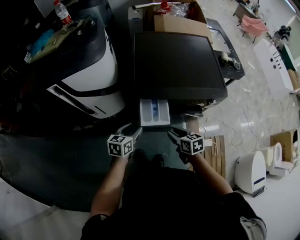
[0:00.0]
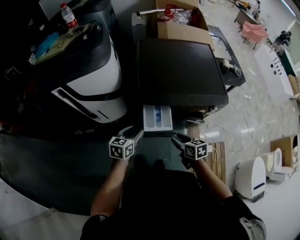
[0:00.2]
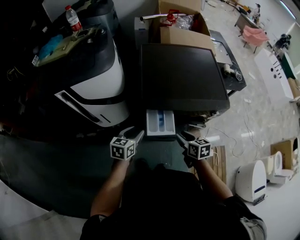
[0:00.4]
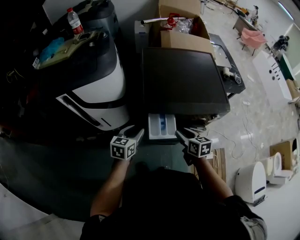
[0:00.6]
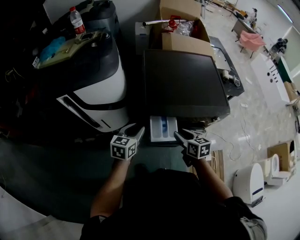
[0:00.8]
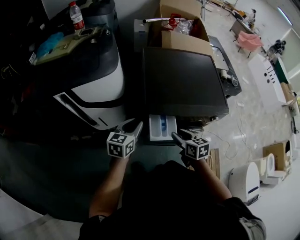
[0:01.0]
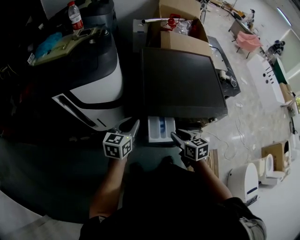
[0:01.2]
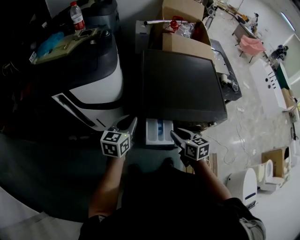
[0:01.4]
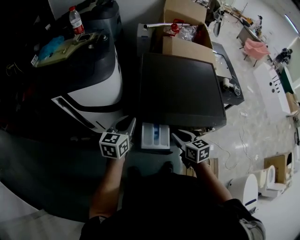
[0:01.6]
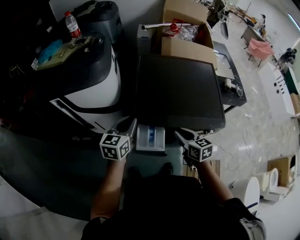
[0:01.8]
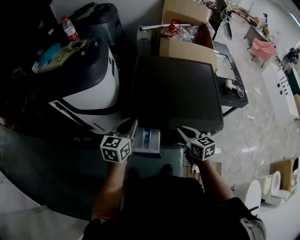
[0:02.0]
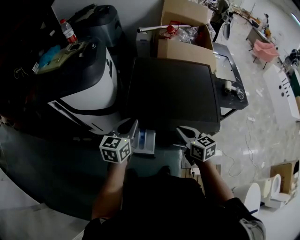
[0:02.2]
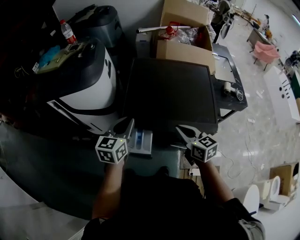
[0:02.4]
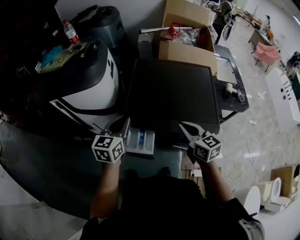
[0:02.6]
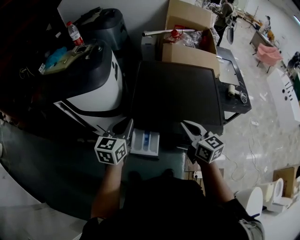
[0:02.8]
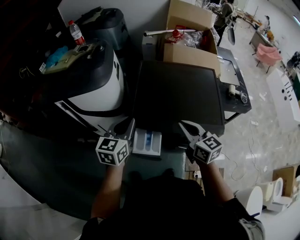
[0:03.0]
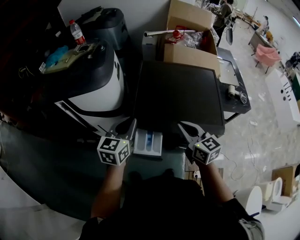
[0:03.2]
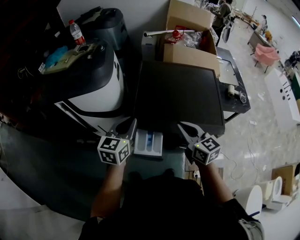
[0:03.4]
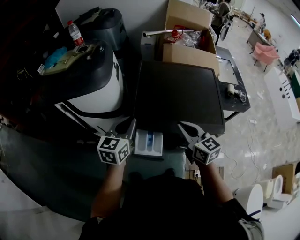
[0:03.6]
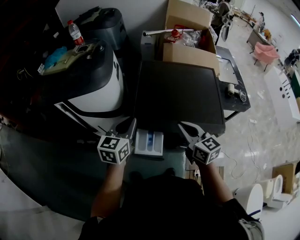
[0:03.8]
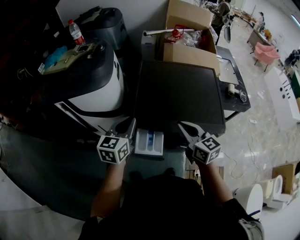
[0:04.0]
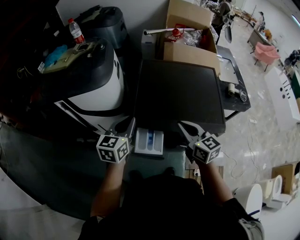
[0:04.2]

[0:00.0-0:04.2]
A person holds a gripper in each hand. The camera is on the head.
0:00.0 to 0:01.4: The left gripper shifts about 20 cm upward, forward and to the left, and closes; the right gripper travels forward and upward by some 15 cm.
0:01.4 to 0:02.8: The two grippers go roughly 15 cm to the right and upward. The right gripper swivels roughly 20 degrees, and closes.
0:02.8 to 0:04.2: The grippers move only a little.

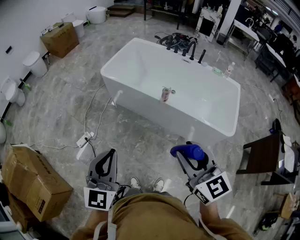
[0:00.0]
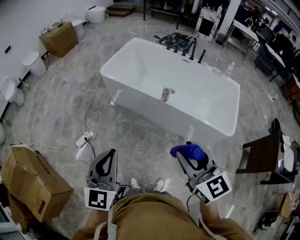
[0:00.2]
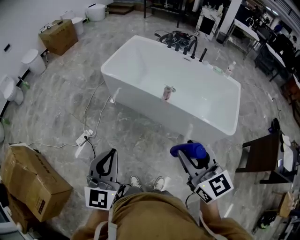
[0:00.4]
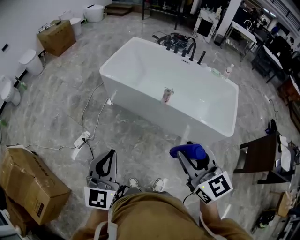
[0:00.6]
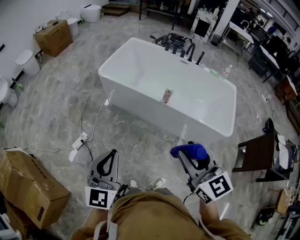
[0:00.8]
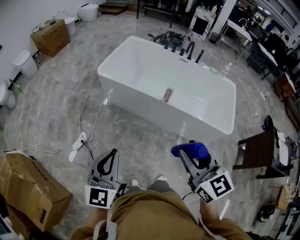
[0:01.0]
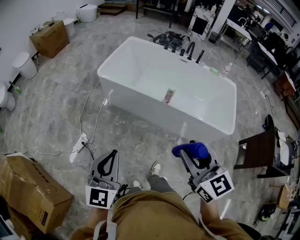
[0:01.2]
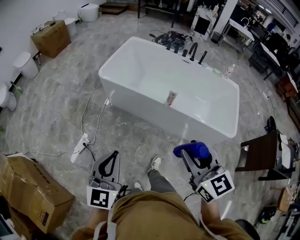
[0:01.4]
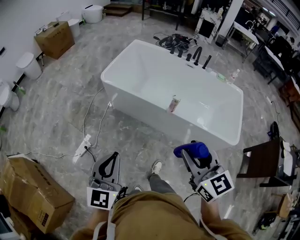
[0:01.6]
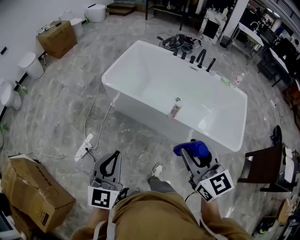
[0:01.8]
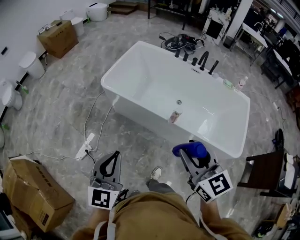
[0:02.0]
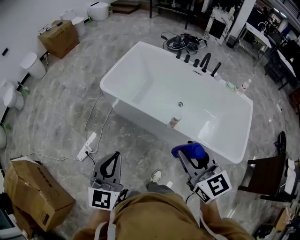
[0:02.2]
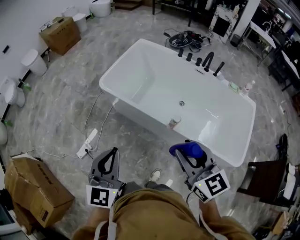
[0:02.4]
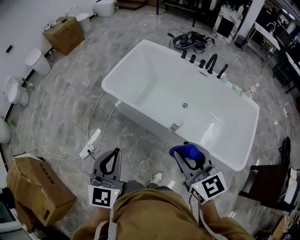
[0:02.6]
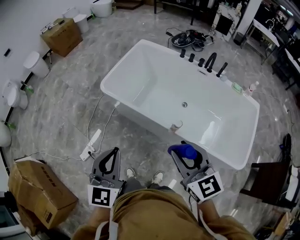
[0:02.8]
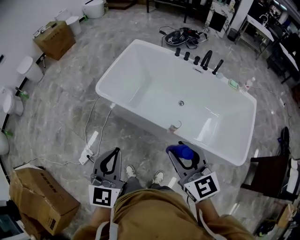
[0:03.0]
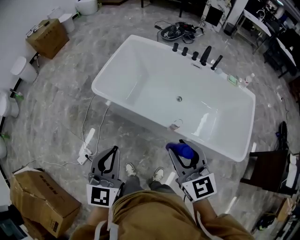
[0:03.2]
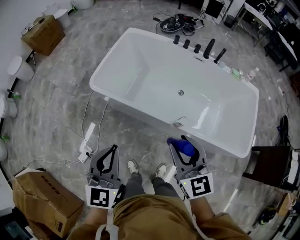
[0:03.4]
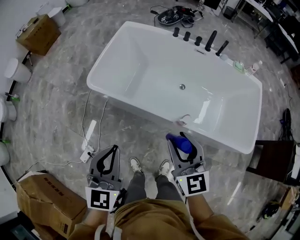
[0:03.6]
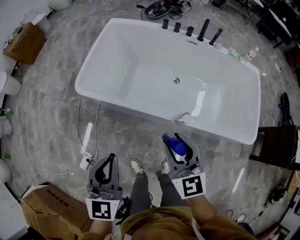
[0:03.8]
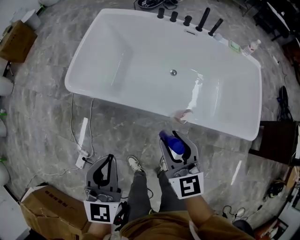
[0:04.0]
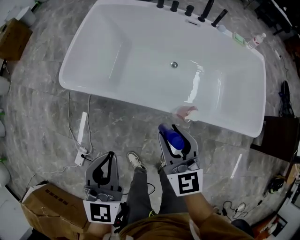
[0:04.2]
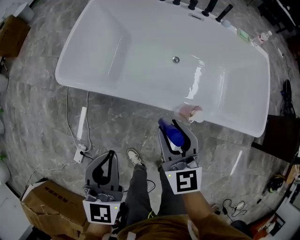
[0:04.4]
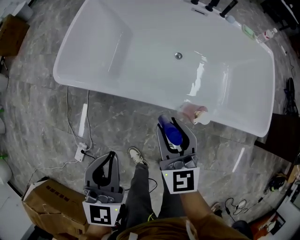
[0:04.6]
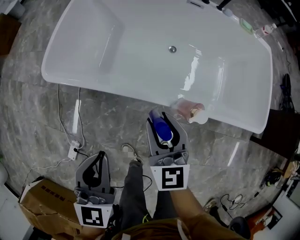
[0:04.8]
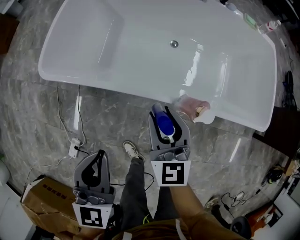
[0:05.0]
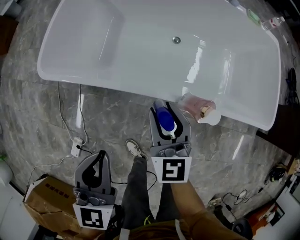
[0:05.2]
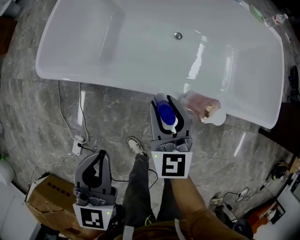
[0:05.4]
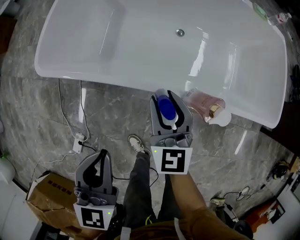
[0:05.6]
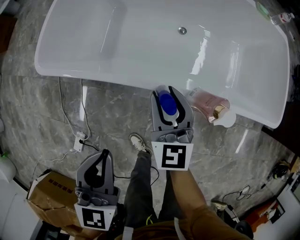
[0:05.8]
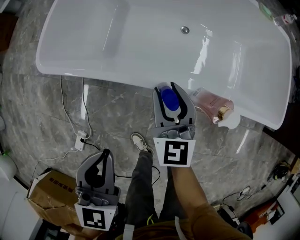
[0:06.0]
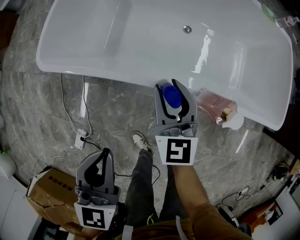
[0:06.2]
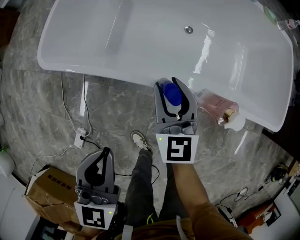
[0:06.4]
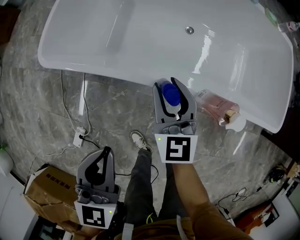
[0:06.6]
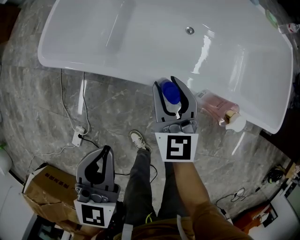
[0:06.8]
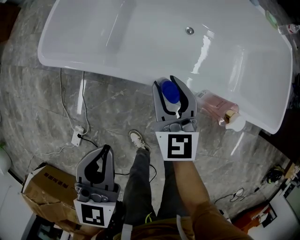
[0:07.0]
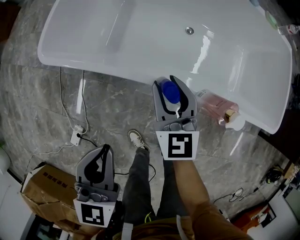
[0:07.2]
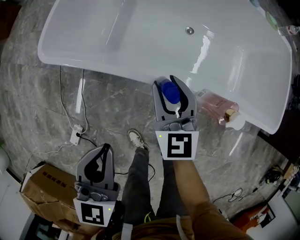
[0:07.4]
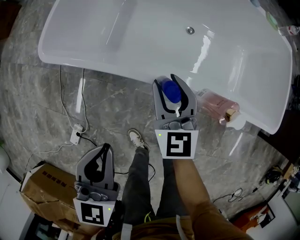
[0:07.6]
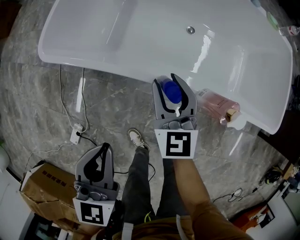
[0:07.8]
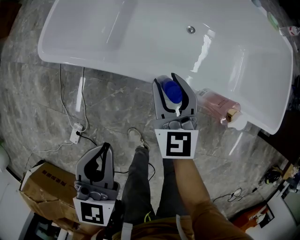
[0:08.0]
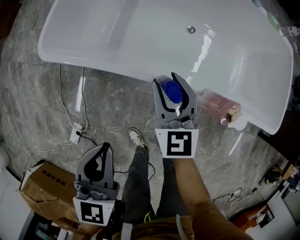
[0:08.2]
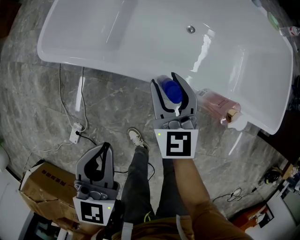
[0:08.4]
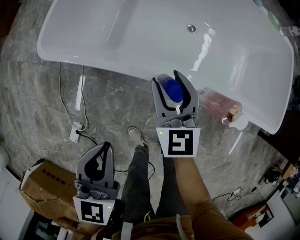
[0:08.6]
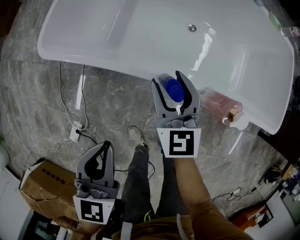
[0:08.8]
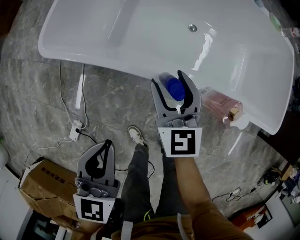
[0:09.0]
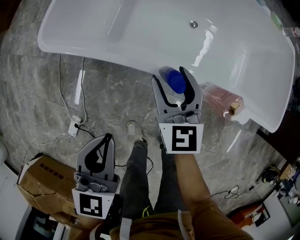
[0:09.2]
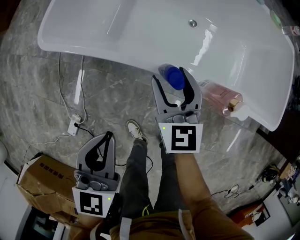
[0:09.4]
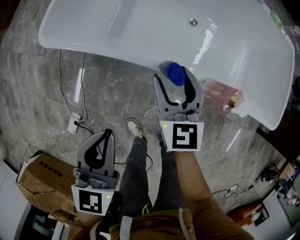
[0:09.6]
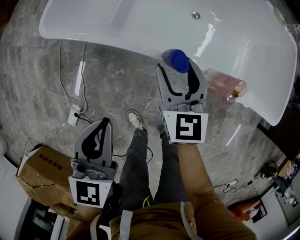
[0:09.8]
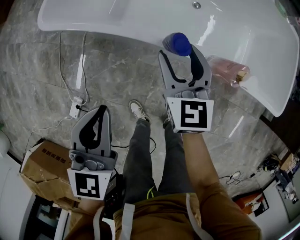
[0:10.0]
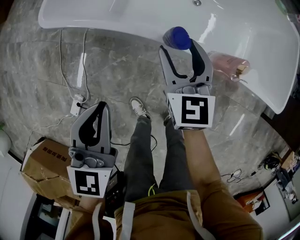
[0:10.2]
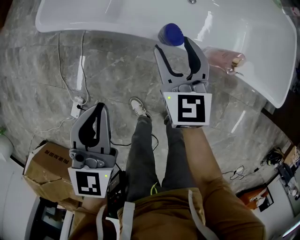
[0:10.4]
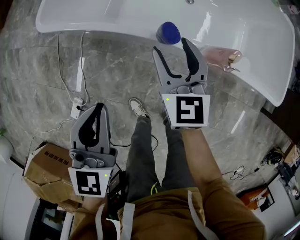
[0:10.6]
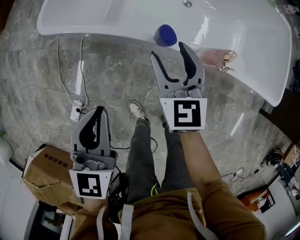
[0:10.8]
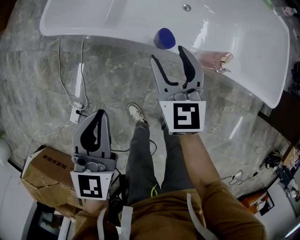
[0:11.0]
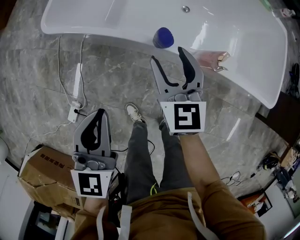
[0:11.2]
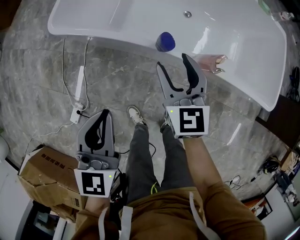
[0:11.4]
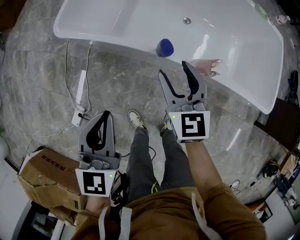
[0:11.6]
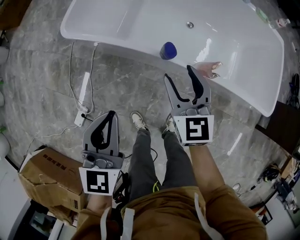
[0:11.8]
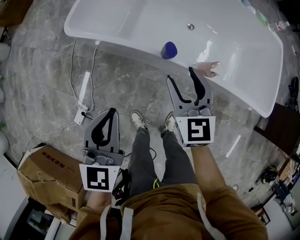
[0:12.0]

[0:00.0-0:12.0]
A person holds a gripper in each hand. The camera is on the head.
0:00.0 to 0:01.6: Both grippers move forward and to the left, about 15 cm.
0:01.6 to 0:03.0: The right gripper heads forward, covering approximately 25 cm. The left gripper goes about 25 cm forward and to the right.
0:03.0 to 0:04.4: Both grippers travel together downward and forward, about 25 cm. The right gripper swivels some 30 degrees.
0:04.4 to 0:06.0: The left gripper moves downward, some 10 cm. Meanwhile the right gripper heads downward and forward, covering some 15 cm.
0:06.0 to 0:07.6: The grippers move only a little.
0:07.6 to 0:09.0: The right gripper opens its fingers.
0:09.0 to 0:10.4: The grippers move only a little.
0:10.4 to 0:12.0: The left gripper travels upward by approximately 10 cm, while the right gripper moves upward and backward, some 10 cm.

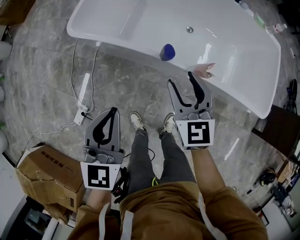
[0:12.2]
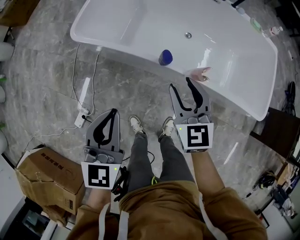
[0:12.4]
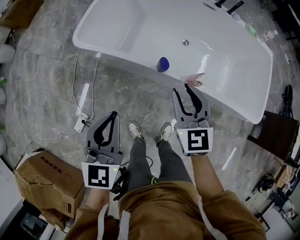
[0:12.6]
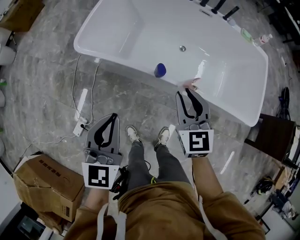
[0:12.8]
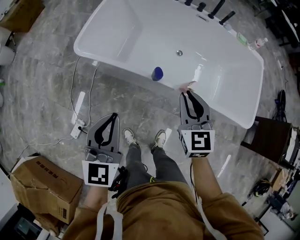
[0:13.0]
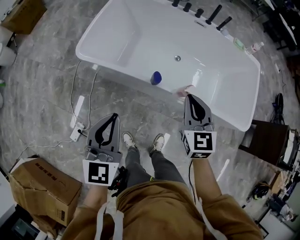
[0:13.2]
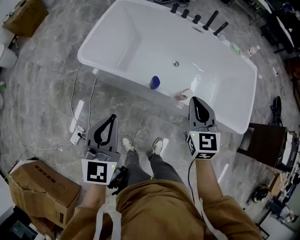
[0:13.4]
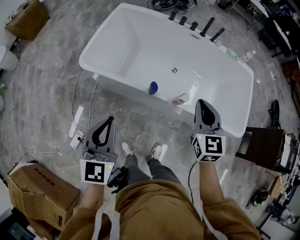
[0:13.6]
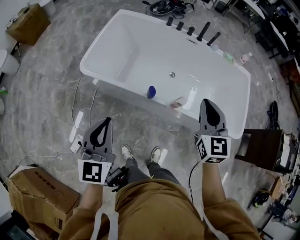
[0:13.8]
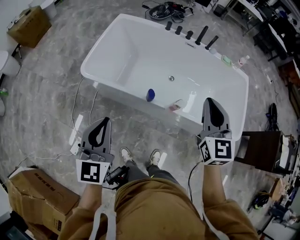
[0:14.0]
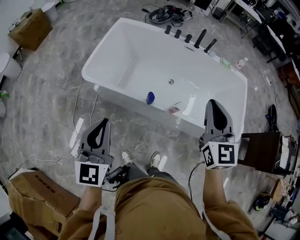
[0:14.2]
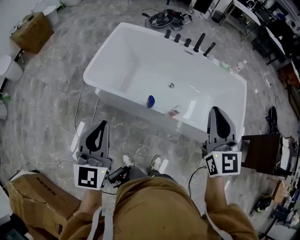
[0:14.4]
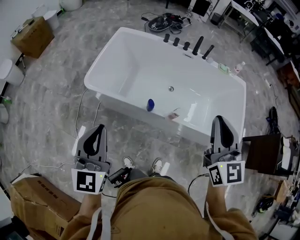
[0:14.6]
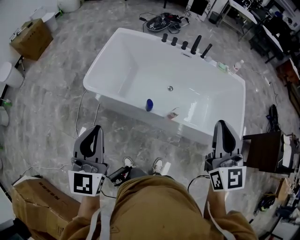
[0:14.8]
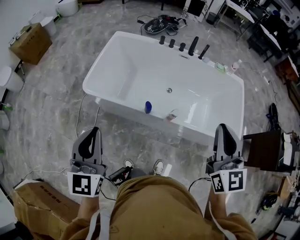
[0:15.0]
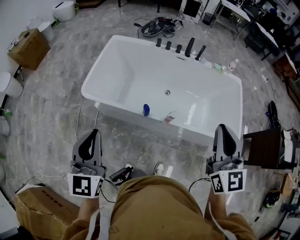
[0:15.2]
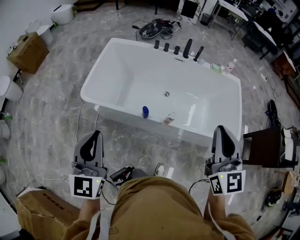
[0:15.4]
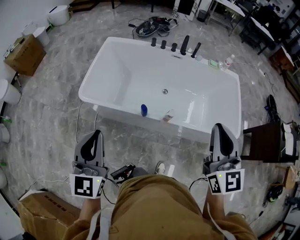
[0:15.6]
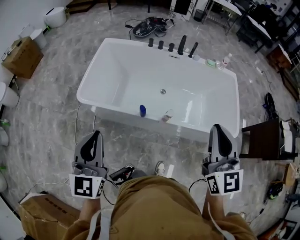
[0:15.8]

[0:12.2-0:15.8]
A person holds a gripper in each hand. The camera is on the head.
0:12.2 to 0:14.0: The left gripper is displaced upward by about 15 cm; the right gripper shifts approximately 30 cm upward and to the right, and closes.
0:14.0 to 0:15.8: The right gripper moves backward and upward, some 15 cm. The left gripper shifts about 10 cm upward.

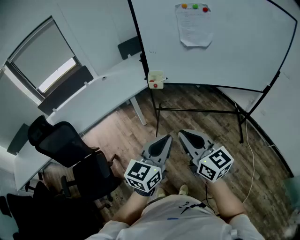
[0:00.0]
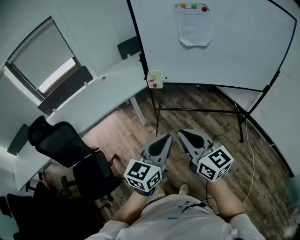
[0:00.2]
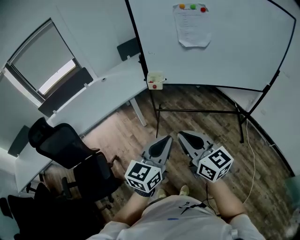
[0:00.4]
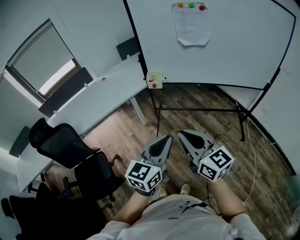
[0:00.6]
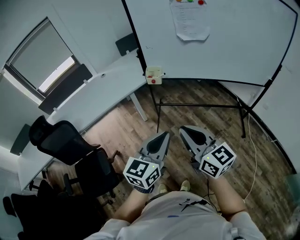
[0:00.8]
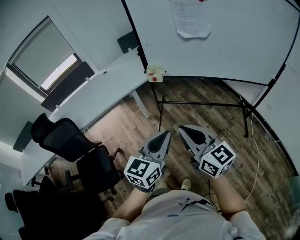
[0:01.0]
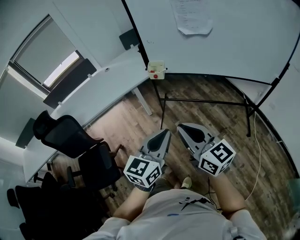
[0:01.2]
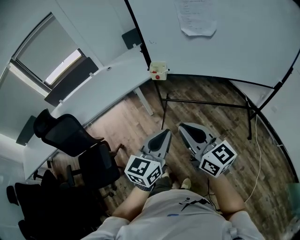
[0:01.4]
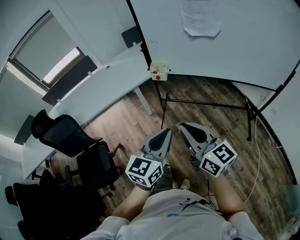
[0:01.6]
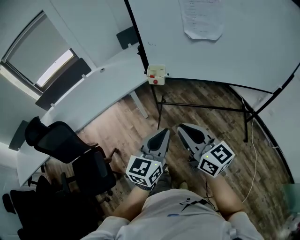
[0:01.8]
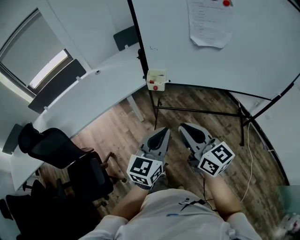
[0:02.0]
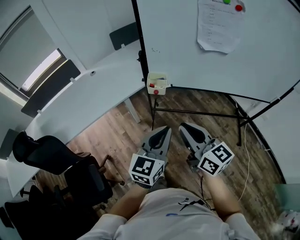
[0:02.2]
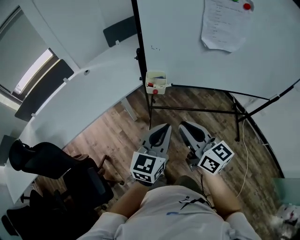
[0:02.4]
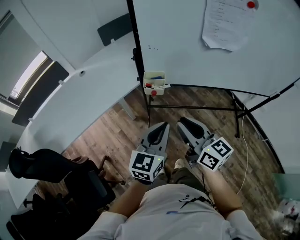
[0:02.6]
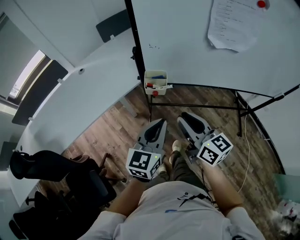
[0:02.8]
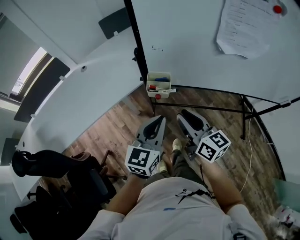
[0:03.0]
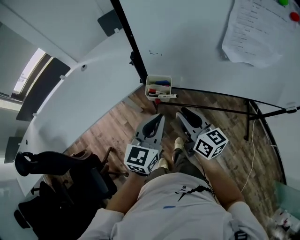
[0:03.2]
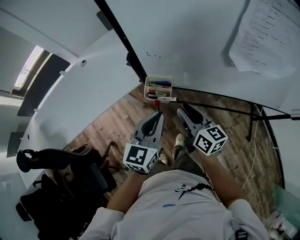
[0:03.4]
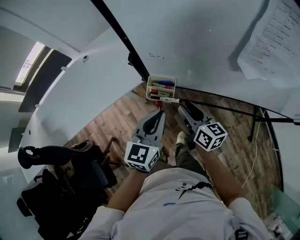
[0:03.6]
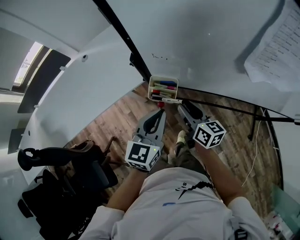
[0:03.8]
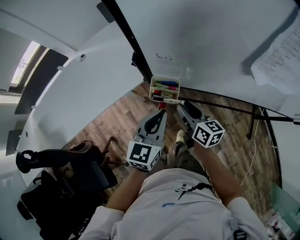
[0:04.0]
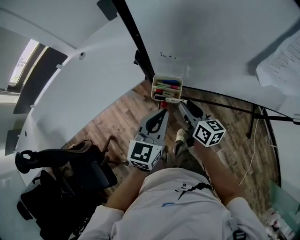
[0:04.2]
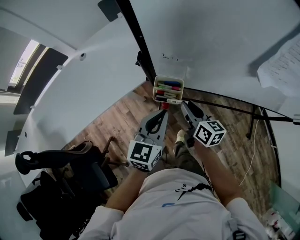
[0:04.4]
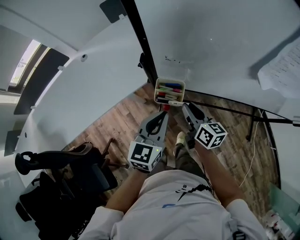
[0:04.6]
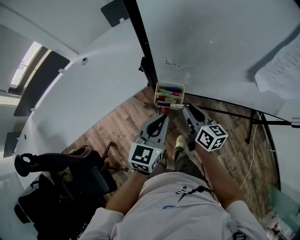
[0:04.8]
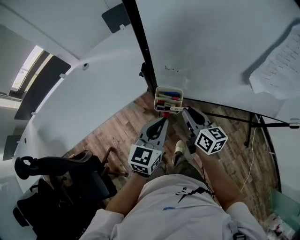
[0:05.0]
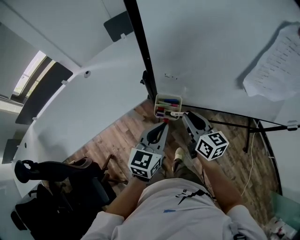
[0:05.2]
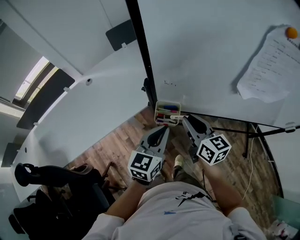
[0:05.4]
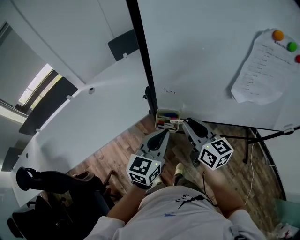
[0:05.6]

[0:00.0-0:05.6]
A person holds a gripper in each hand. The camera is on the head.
0:00.0 to 0:01.4: The left gripper ends up some 5 cm from where it was. Meanwhile the right gripper shifts by roughly 5 cm.
0:01.4 to 0:02.8: Both grippers move forward, some 30 cm.
0:02.8 to 0:04.2: The grippers both shift forward and downward by about 20 cm.
0:04.2 to 0:05.6: The right gripper travels upward by some 15 cm; the left gripper travels upward by roughly 10 cm.
